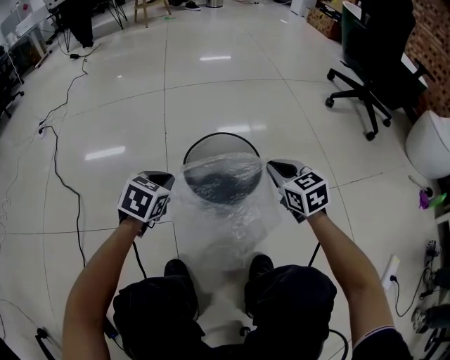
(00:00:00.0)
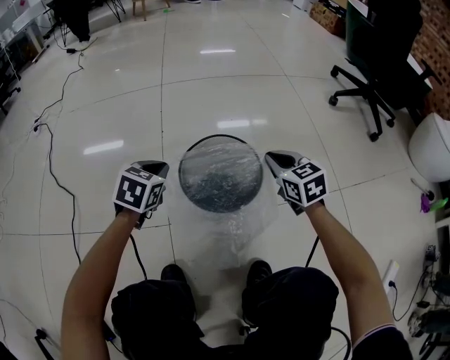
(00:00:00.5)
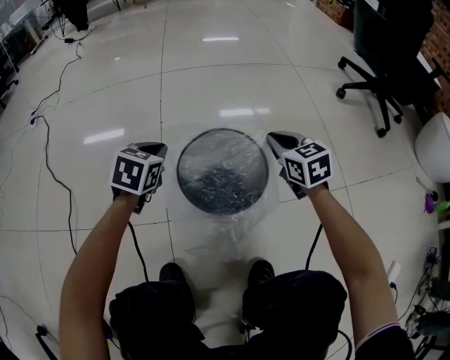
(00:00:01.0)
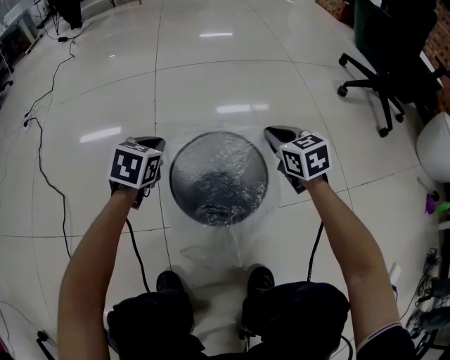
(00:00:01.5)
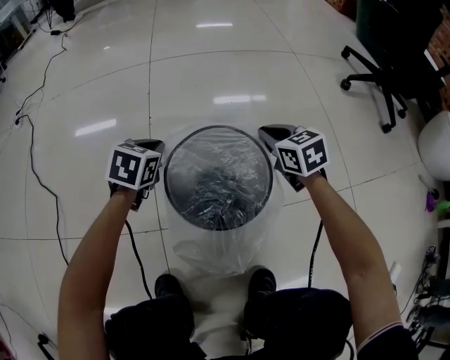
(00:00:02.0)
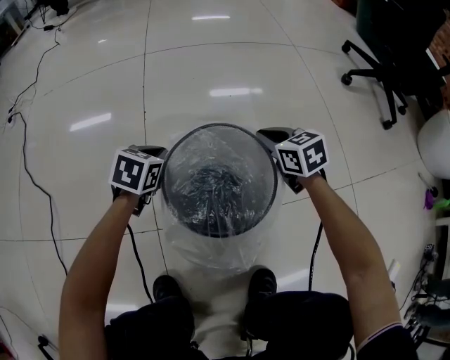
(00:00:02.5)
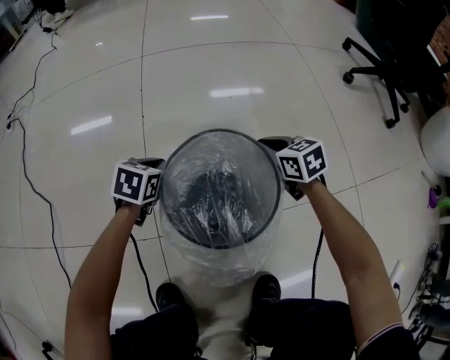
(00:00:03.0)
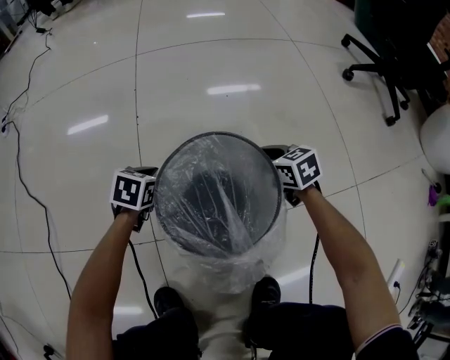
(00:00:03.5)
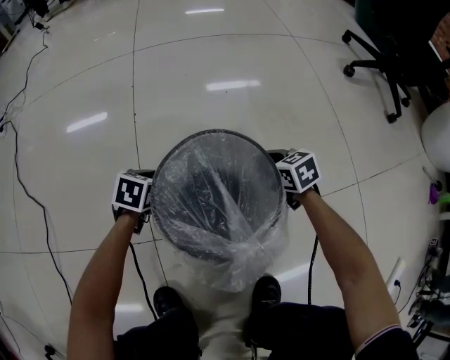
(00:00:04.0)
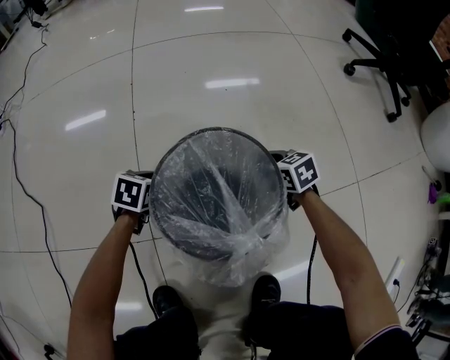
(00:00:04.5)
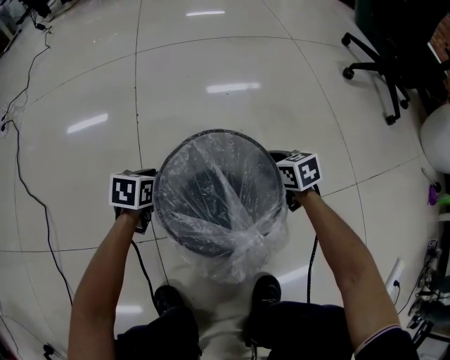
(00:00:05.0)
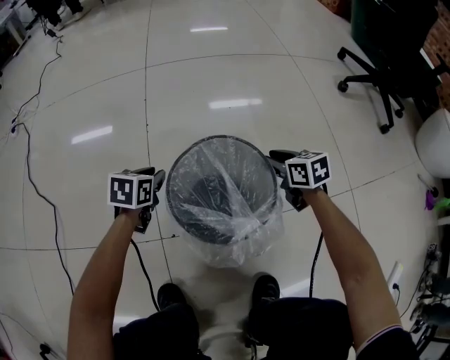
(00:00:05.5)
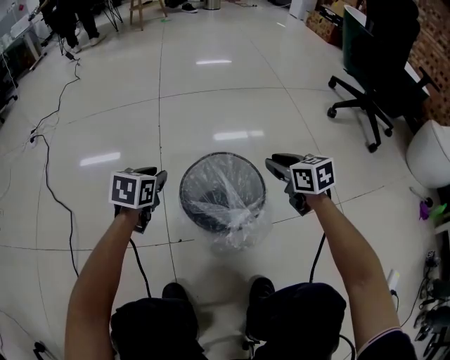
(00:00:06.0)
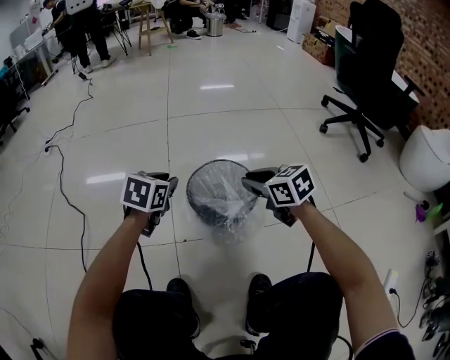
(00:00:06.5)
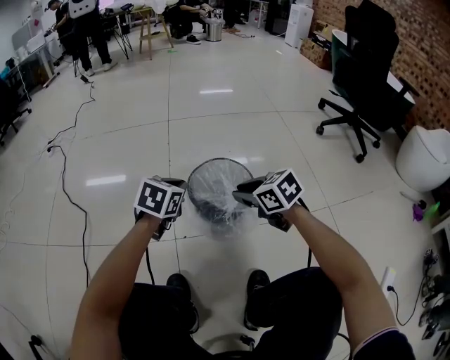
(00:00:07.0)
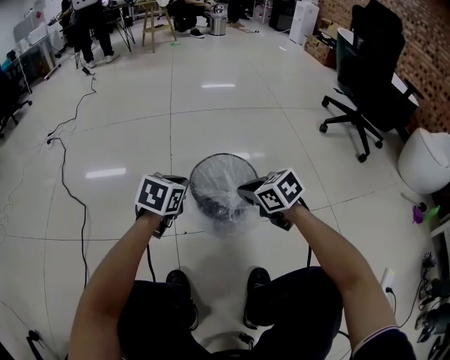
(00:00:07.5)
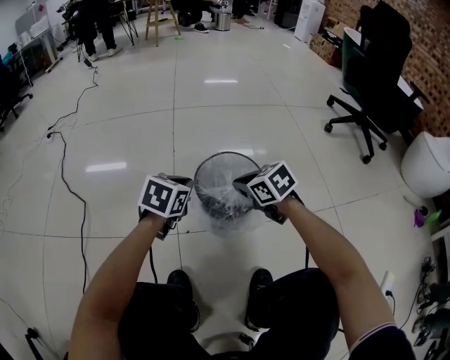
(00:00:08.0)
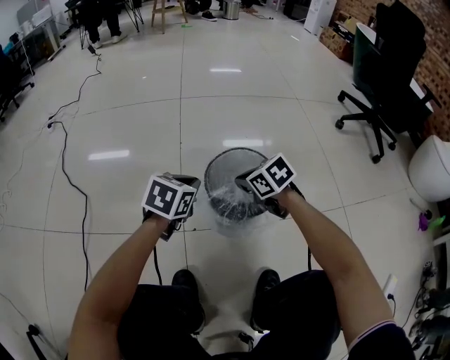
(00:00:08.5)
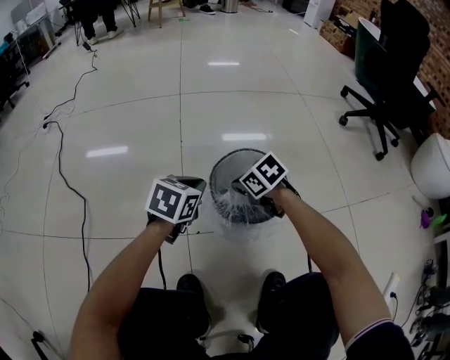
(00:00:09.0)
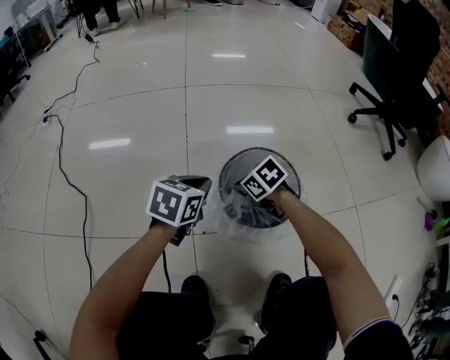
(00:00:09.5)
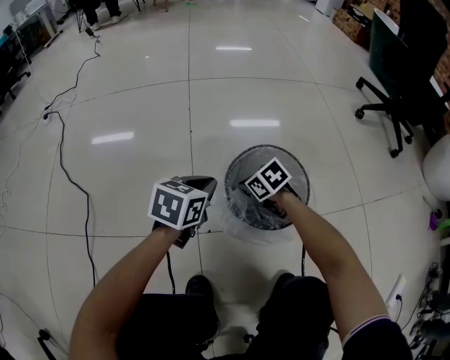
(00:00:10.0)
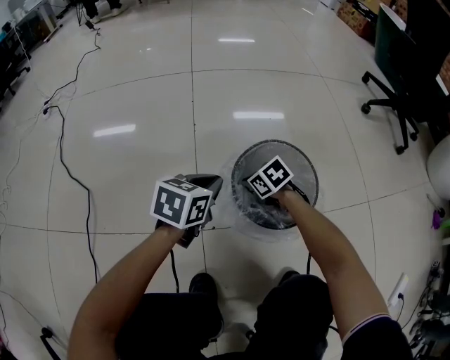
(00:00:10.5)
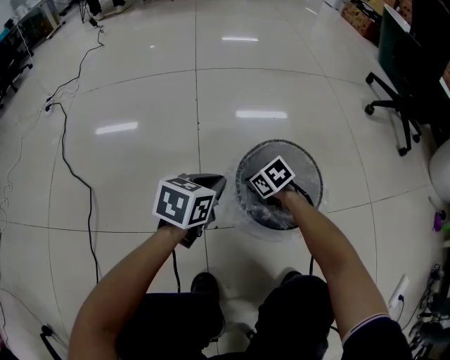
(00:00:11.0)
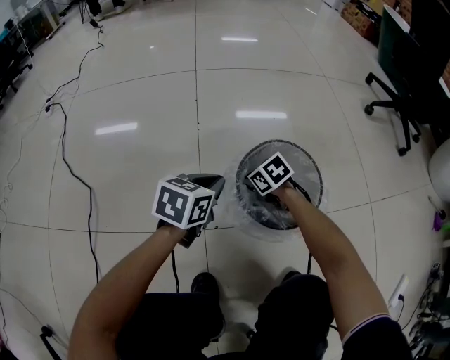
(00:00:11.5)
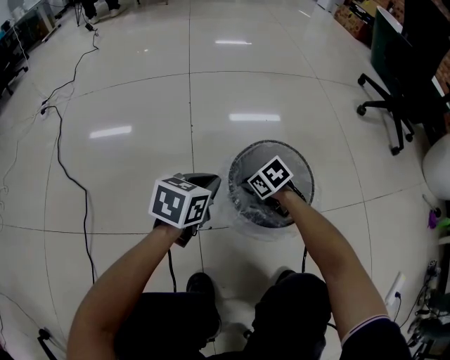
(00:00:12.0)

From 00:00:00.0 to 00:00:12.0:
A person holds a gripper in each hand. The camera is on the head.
From 00:00:00.0 to 00:00:02.0: The grippers both shift forward and downward by approximately 15 cm.
From 00:00:02.0 to 00:00:04.0: Both grippers move downward, about 15 cm.
From 00:00:04.0 to 00:00:06.0: Both grippers move upward, roughly 20 cm. The left gripper opens. Meanwhile the right gripper opens its fingers.
From 00:00:06.0 to 00:00:08.0: The right gripper travels to the left and backward by some 15 cm, rotates some 20 degrees, and closes its fingers, while the left gripper goes approximately 10 cm backward and upward, and closes.
From 00:00:08.0 to 00:00:10.0: The left gripper shifts approximately 5 cm downward; the right gripper shifts roughly 20 cm downward and forward.
From 00:00:10.0 to 00:00:12.0: The grippers make only small movements.

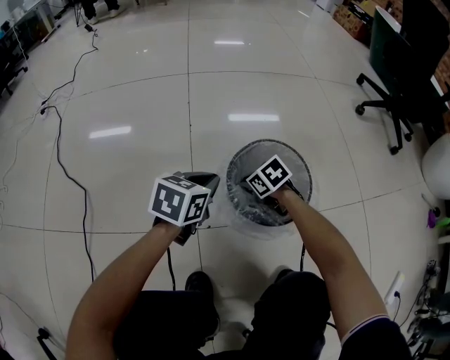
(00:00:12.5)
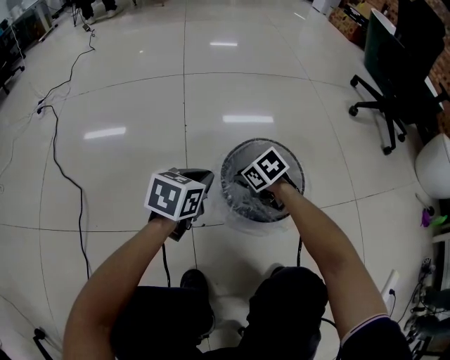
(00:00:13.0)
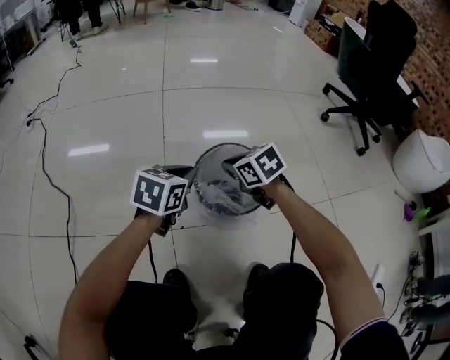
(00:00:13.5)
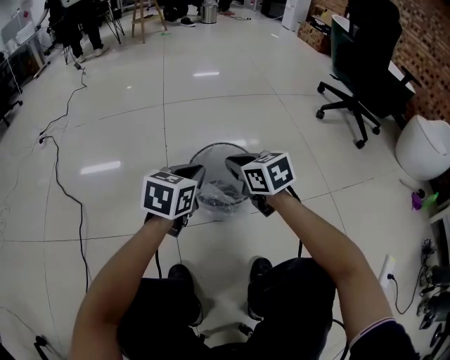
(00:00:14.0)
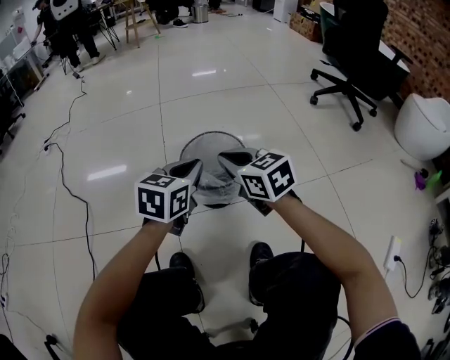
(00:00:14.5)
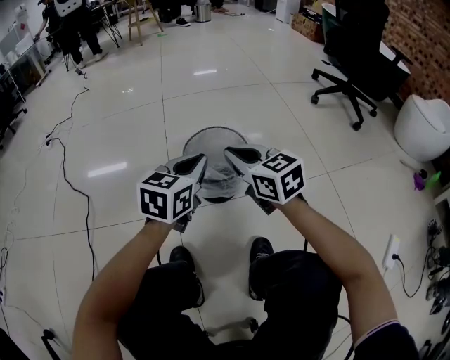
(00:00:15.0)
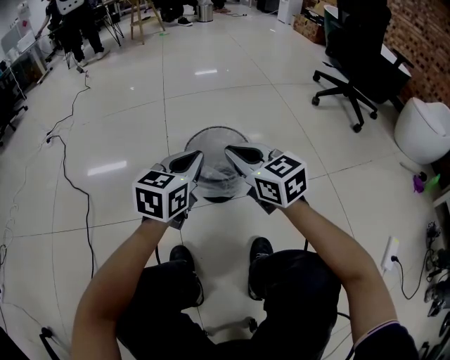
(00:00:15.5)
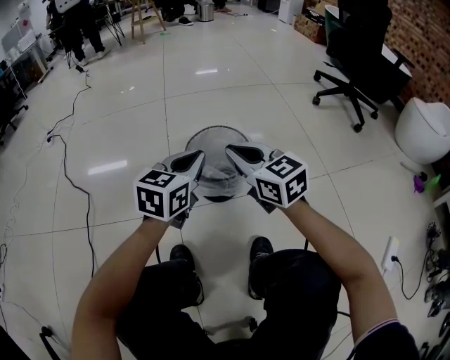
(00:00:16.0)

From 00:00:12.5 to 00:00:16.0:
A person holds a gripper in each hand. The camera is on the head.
From 00:00:12.5 to 00:00:14.5: The right gripper is displaced upward and backward by roughly 30 cm, and tilts its fingers some 40 degrees upward. Meanwhile the left gripper travels upward, backward and to the right by about 20 cm.
From 00:00:14.5 to 00:00:16.0: There are only small adjustments of the grippers.

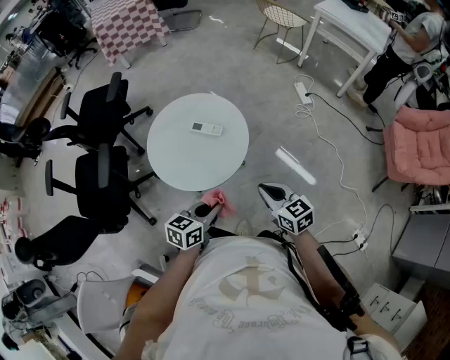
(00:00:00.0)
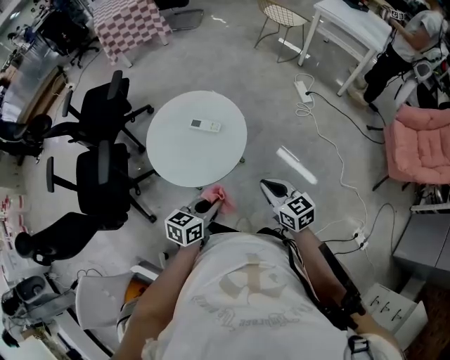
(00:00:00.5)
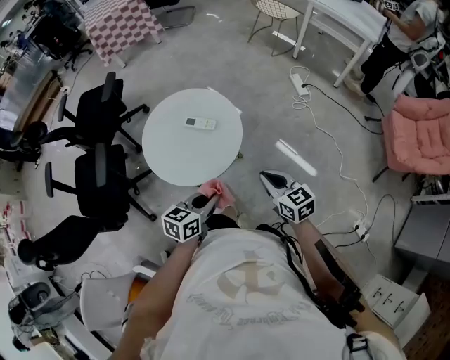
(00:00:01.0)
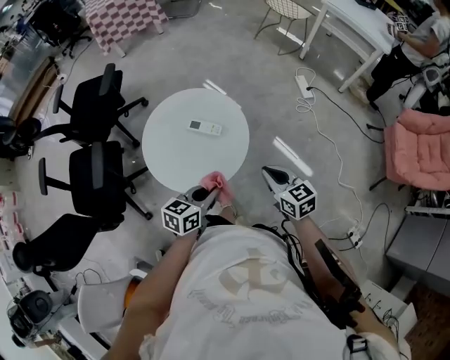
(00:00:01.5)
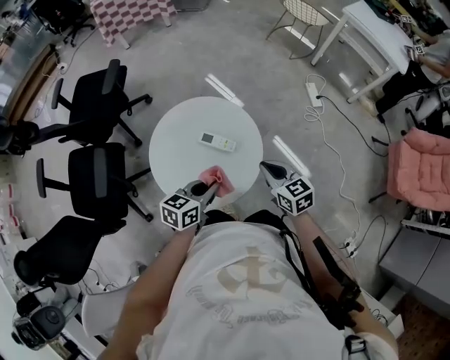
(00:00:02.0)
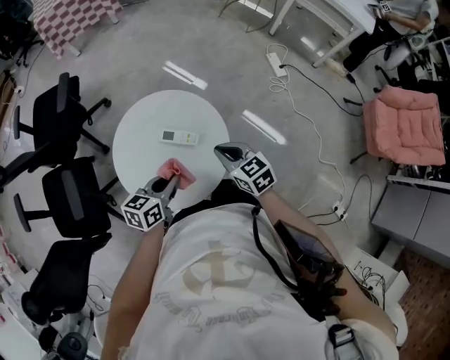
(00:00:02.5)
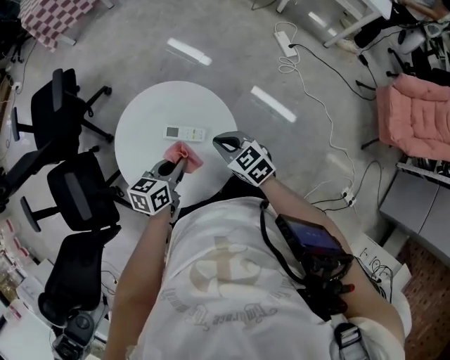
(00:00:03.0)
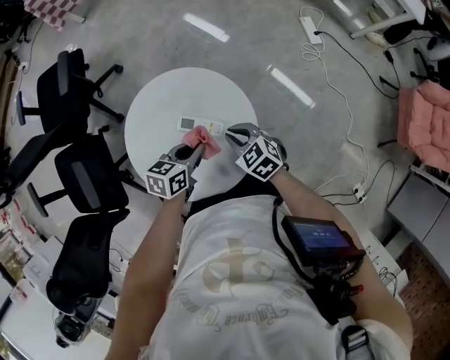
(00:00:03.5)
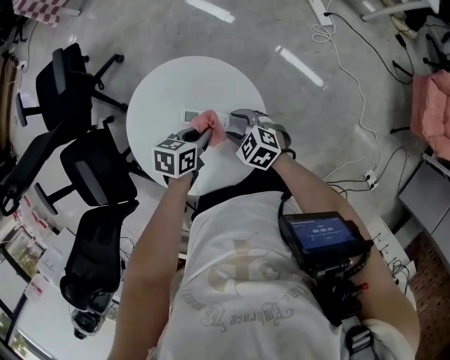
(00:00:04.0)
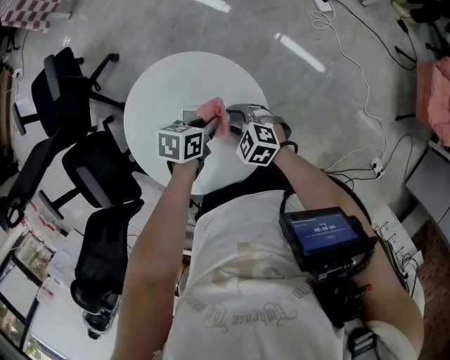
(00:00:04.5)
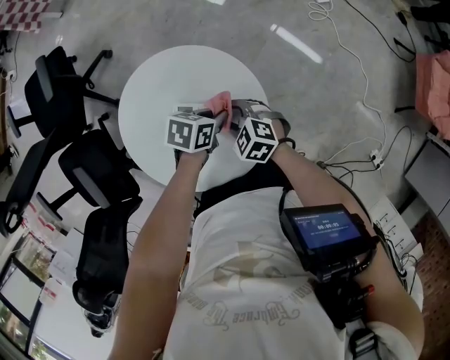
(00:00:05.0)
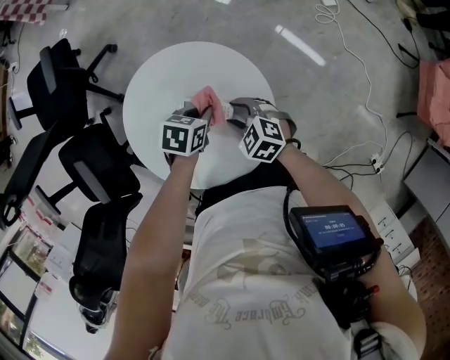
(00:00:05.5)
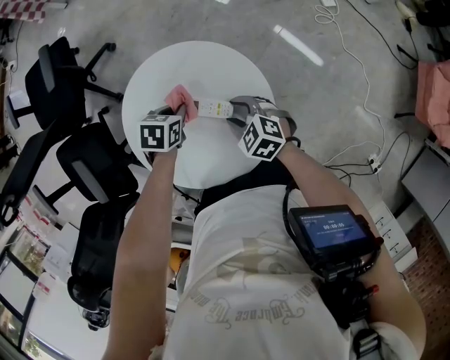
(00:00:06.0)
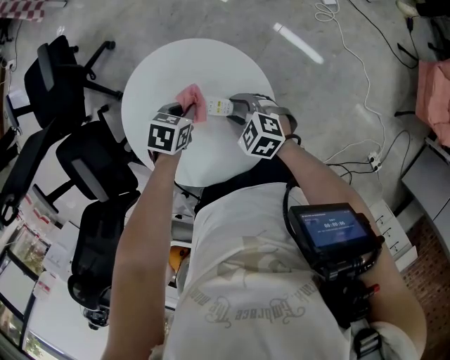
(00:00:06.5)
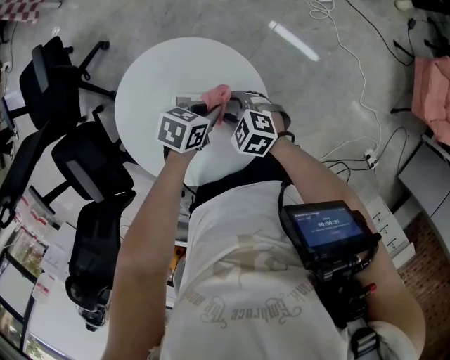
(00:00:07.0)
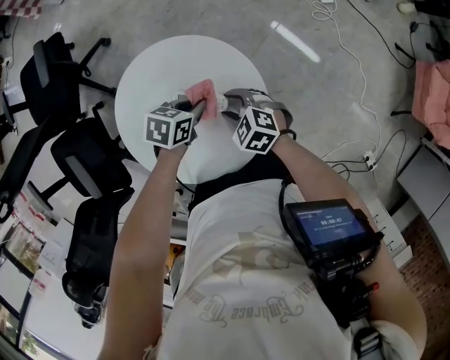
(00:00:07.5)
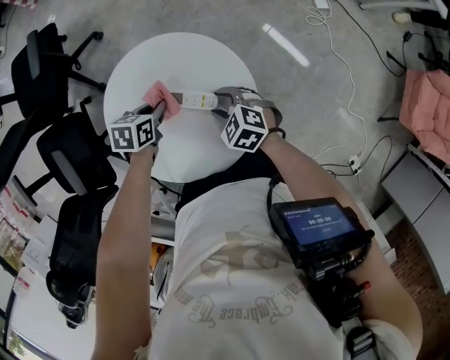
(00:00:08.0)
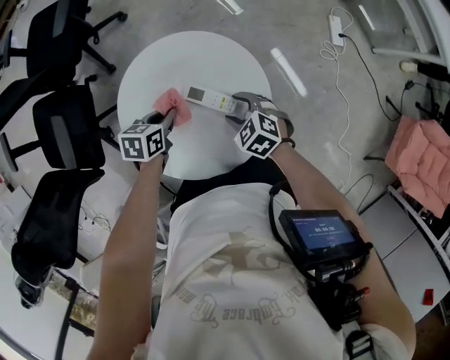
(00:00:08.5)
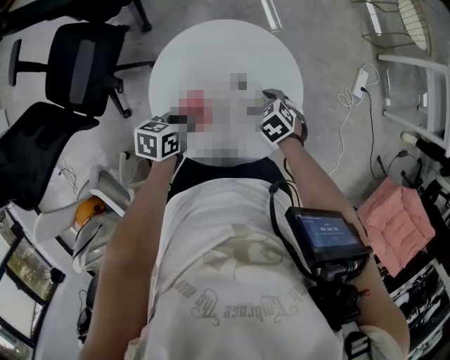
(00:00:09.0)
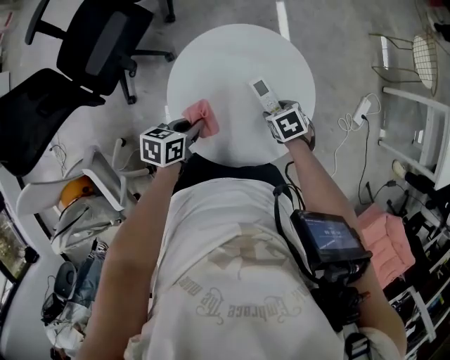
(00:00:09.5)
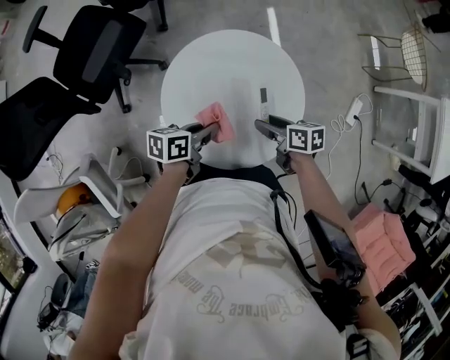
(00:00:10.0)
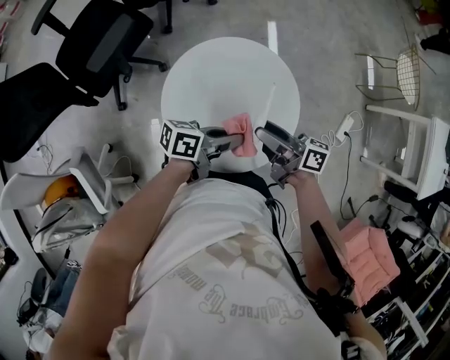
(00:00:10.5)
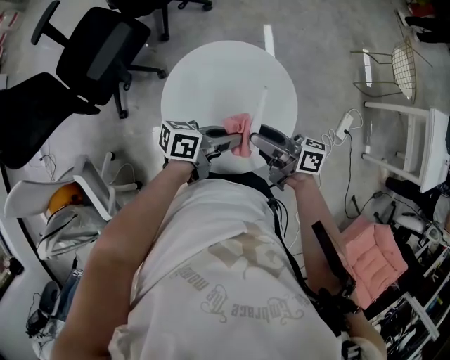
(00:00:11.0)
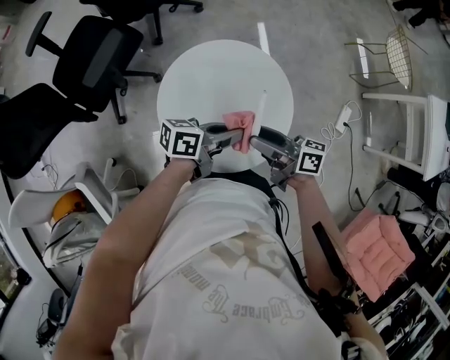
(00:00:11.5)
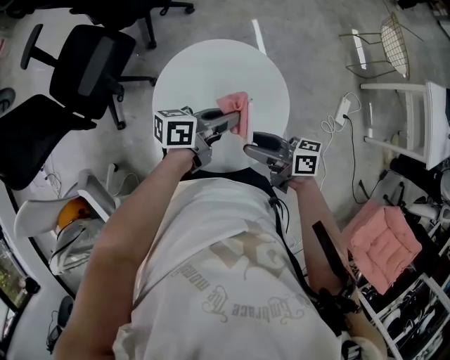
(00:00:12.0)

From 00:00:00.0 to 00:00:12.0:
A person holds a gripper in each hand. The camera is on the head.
From 00:00:00.0 to 00:00:02.0: The two grippers go about 15 cm forward.
From 00:00:02.0 to 00:00:04.0: Both grippers travel together downward, about 15 cm. The right gripper changes its angle by approximately 30 degrees, and opens up. The left gripper rotates roughly 30 degrees.
From 00:00:04.0 to 00:00:06.0: The left gripper ends up roughly 10 cm from where it was.
From 00:00:08.0 to 00:00:10.0: The right gripper changes its angle by about 40 degrees; the left gripper changes place by approximately 15 cm, and rotates about 50 degrees.
From 00:00:10.0 to 00:00:12.0: Both grippers move upward, some 10 cm. The right gripper points its fingers about 30 degrees further upward; the left gripper swivels roughly 30 degrees.
